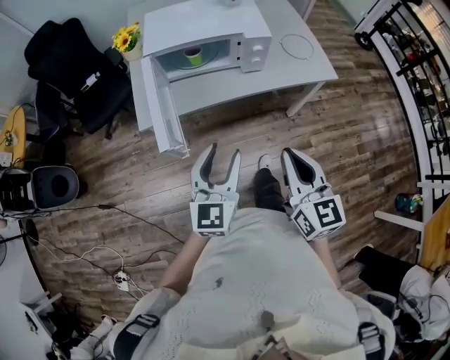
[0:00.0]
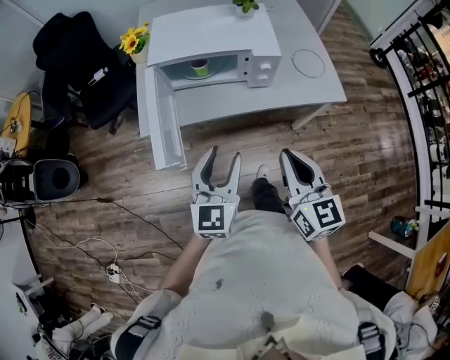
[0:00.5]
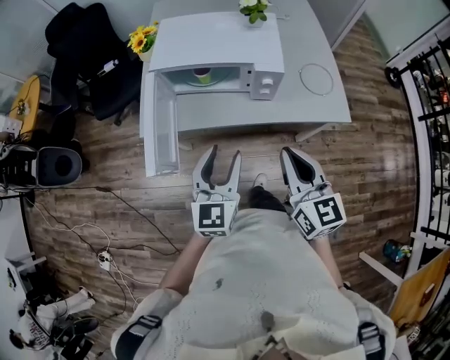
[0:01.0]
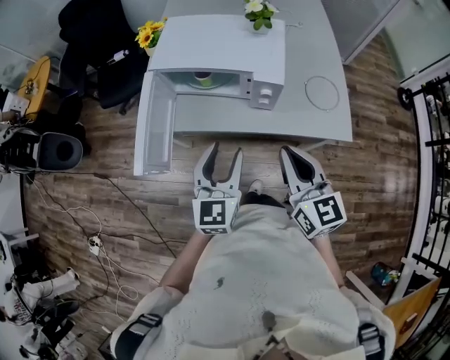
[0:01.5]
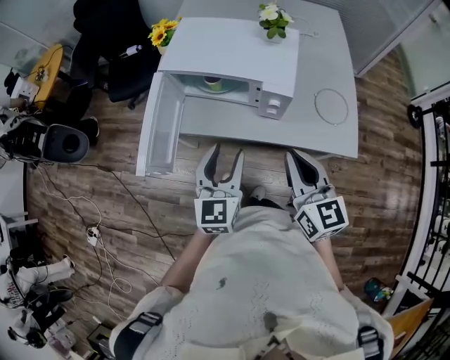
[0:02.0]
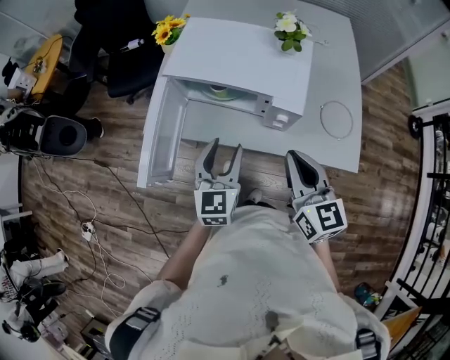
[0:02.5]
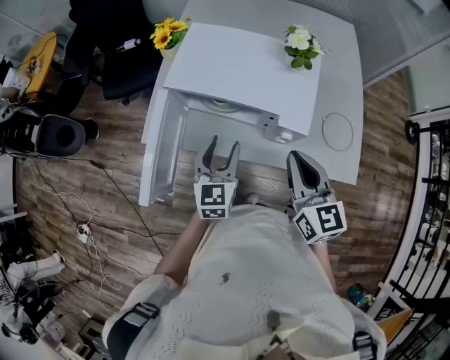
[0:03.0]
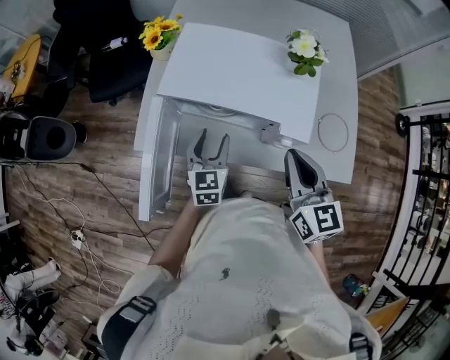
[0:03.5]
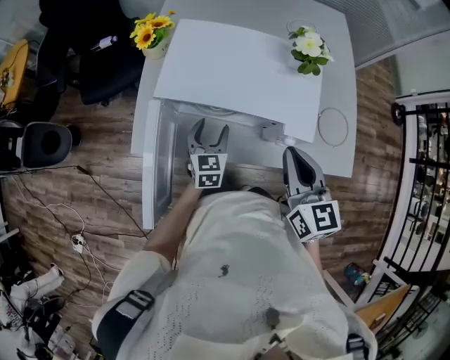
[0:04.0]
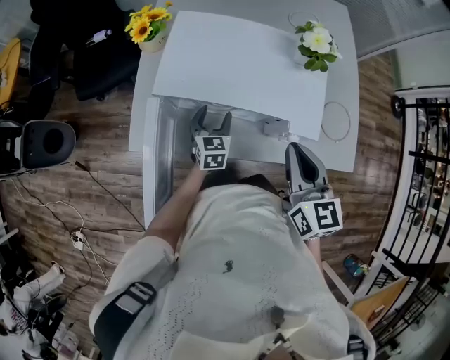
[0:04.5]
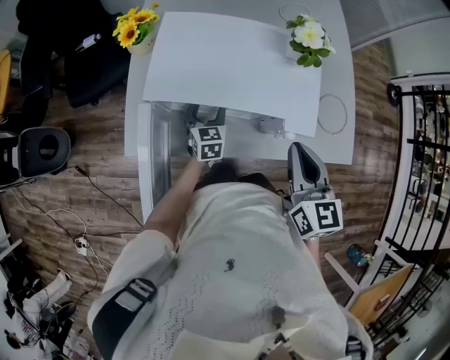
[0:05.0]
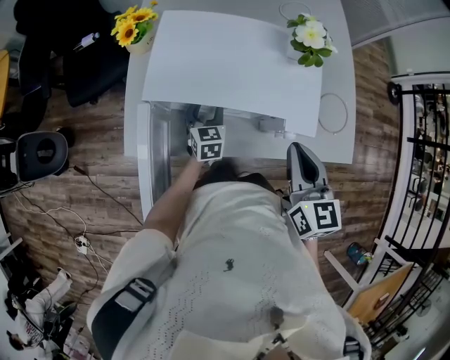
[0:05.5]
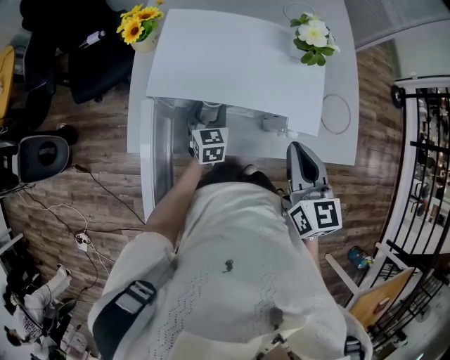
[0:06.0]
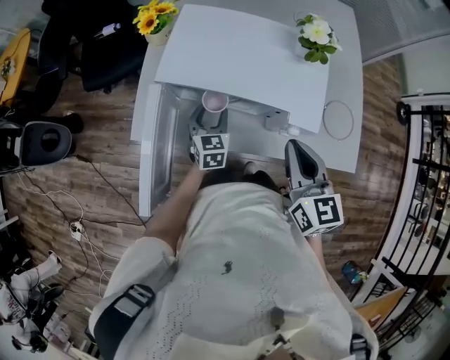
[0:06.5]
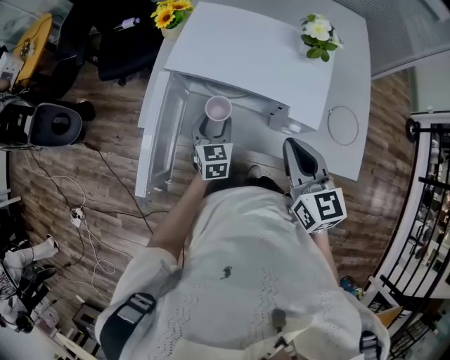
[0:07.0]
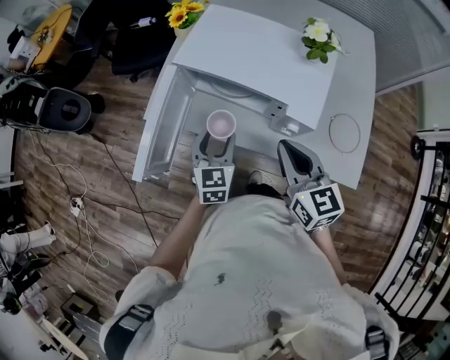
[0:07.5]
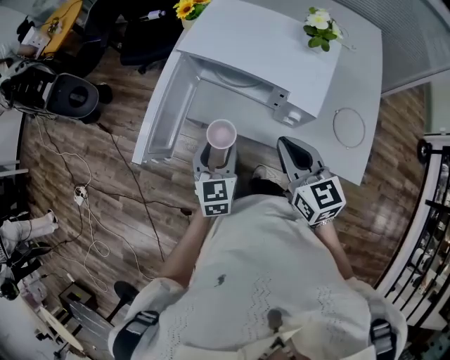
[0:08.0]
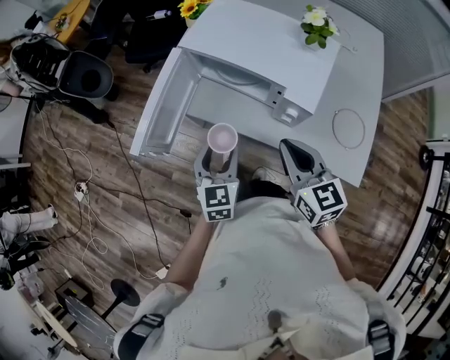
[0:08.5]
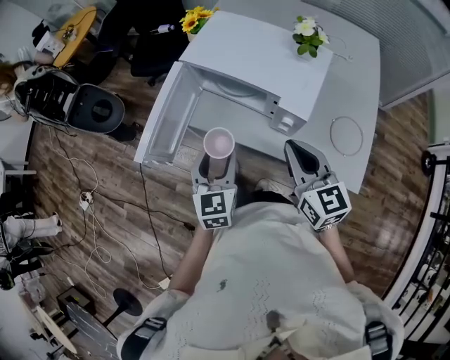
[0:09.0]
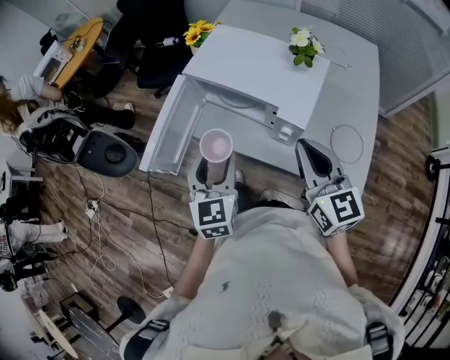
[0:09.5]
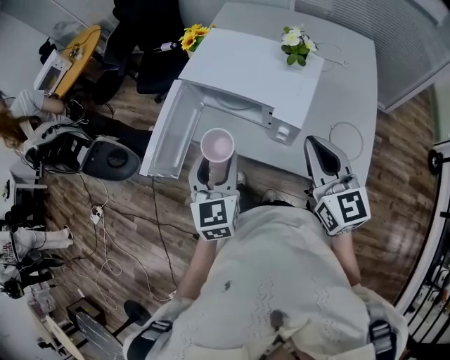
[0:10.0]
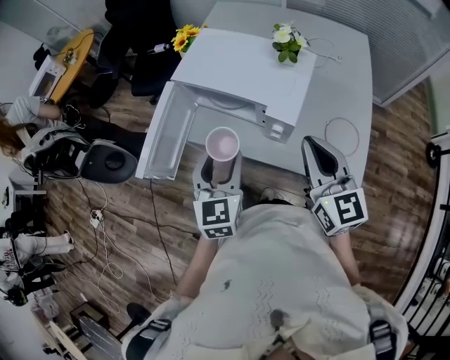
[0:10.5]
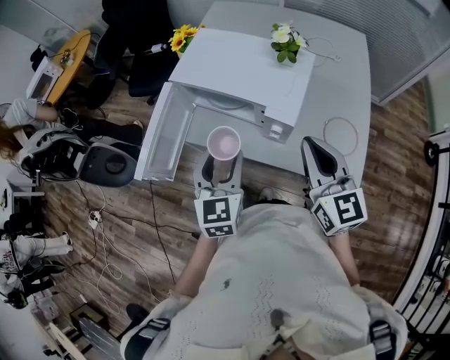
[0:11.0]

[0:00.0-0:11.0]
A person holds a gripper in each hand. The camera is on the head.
0:00.0 to 0:02.0: The two grippers go approximately 30 cm forward and to the right. The left gripper swivels about 30 degrees. Meanwhile the right gripper swivels about 20 degrees.
0:02.0 to 0:03.5: The left gripper heads forward and downward, covering roughly 25 cm. The right gripper shifts about 20 cm forward.
0:03.5 to 0:05.5: The left gripper heads forward and downward, covering approximately 15 cm.
0:05.5 to 0:07.5: The right gripper moves backward, approximately 5 cm, and changes its angle by some 30 degrees; the left gripper is displaced backward and upward by about 25 cm.
0:07.5 to 0:09.0: The right gripper shifts about 5 cm backward. Meanwhile the left gripper goes roughly 15 cm backward and upward.
0:09.0 to 0:11.0: The right gripper heads to the right and upward, covering roughly 10 cm; the left gripper travels upward and to the right by some 10 cm.

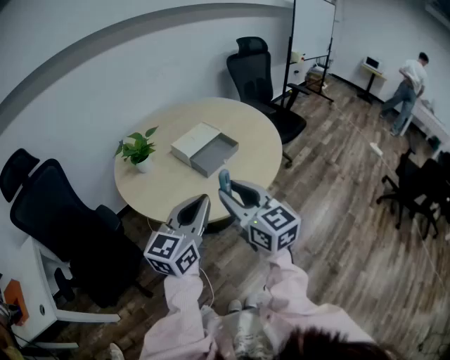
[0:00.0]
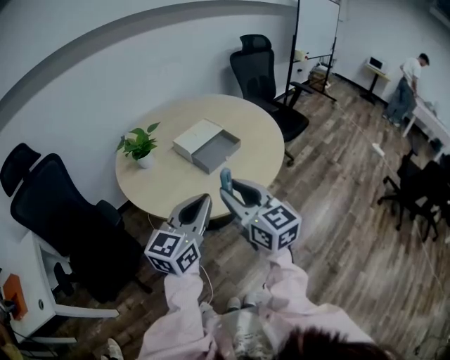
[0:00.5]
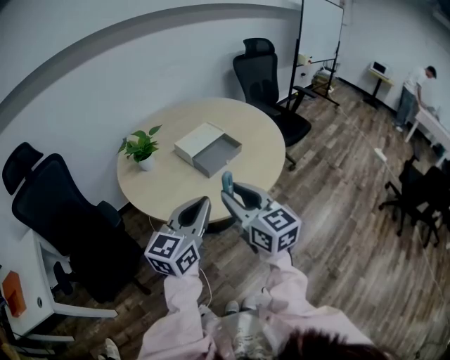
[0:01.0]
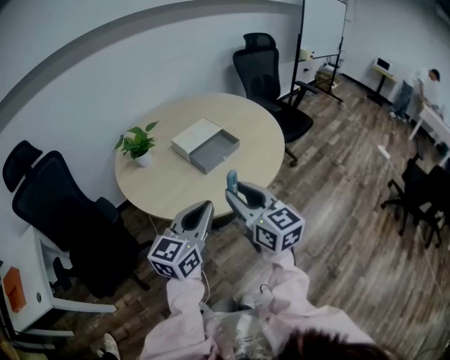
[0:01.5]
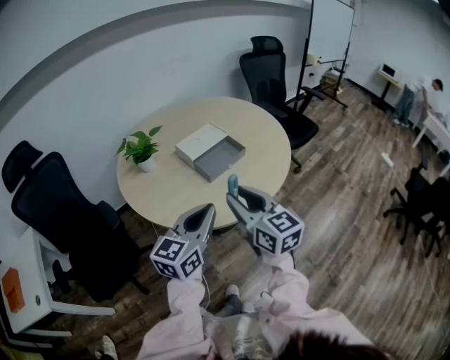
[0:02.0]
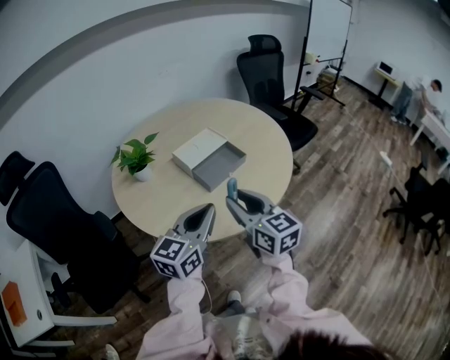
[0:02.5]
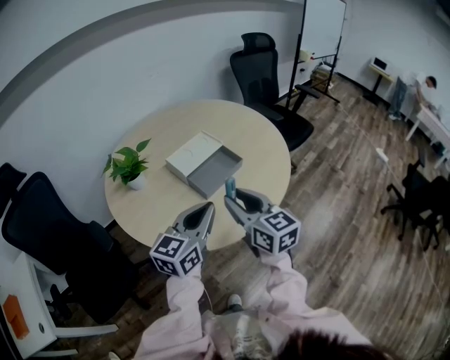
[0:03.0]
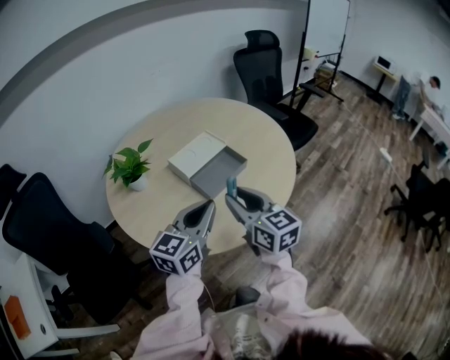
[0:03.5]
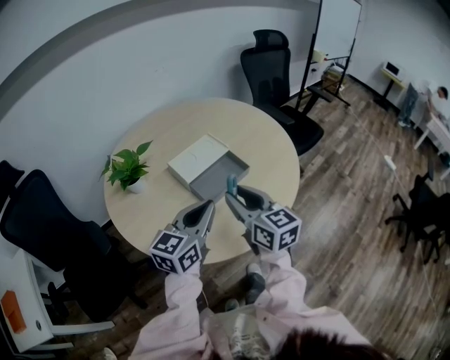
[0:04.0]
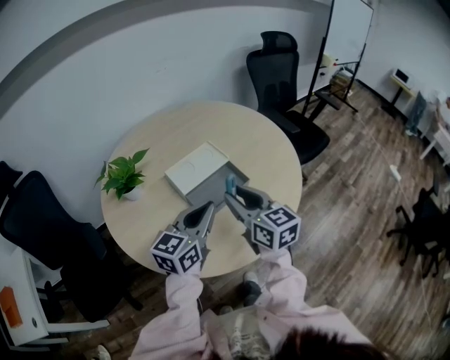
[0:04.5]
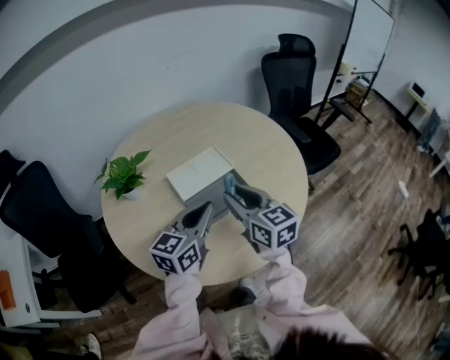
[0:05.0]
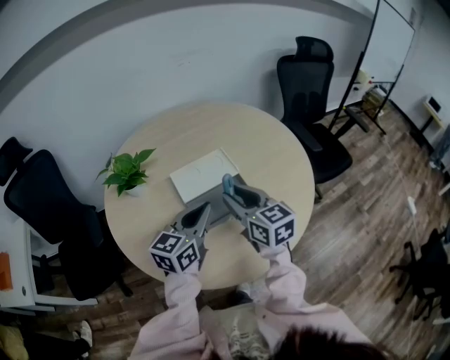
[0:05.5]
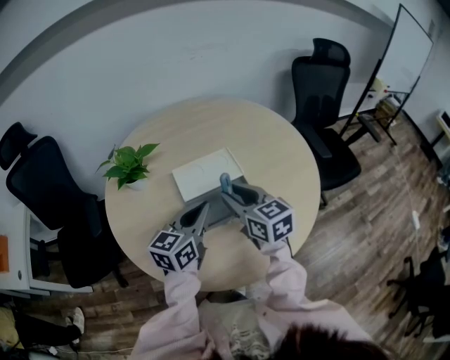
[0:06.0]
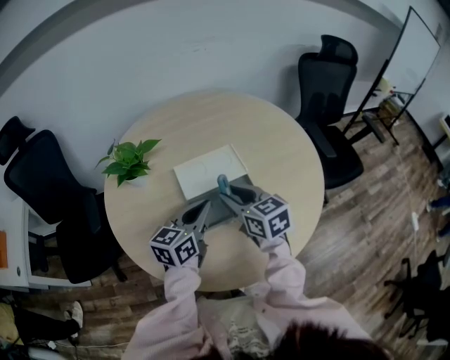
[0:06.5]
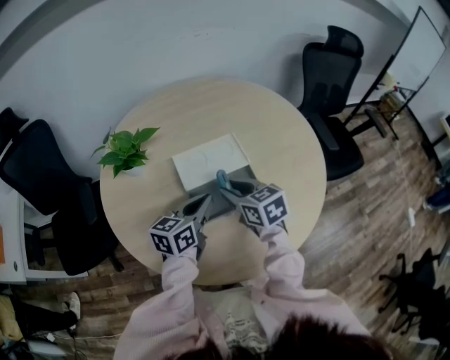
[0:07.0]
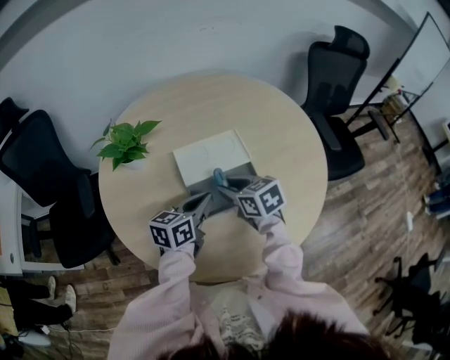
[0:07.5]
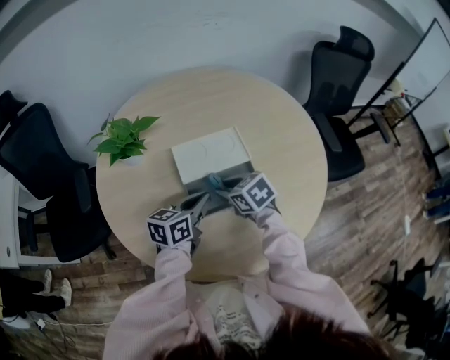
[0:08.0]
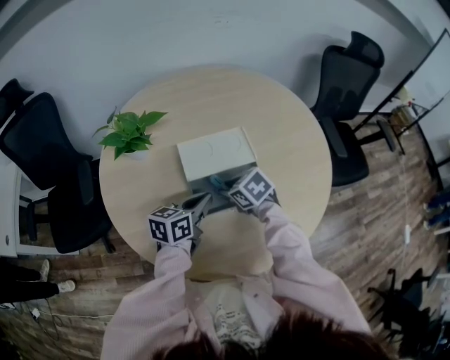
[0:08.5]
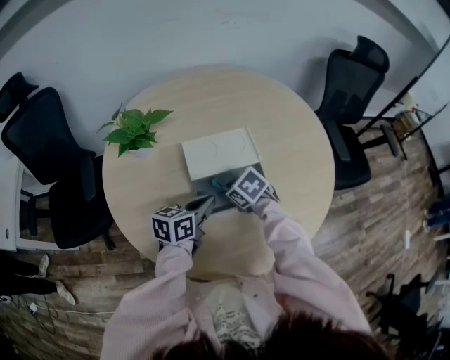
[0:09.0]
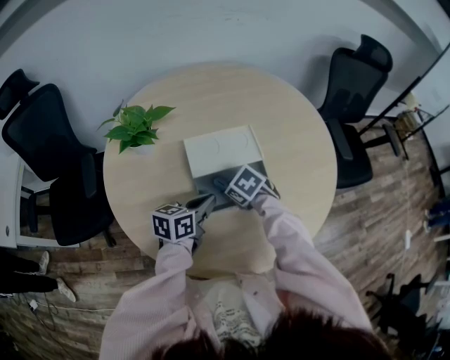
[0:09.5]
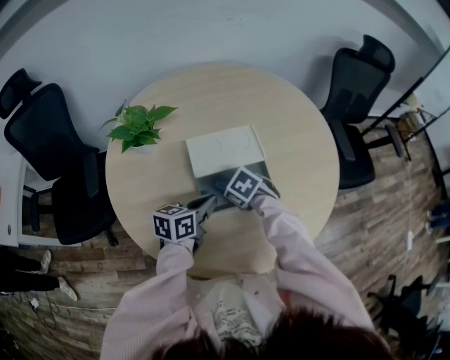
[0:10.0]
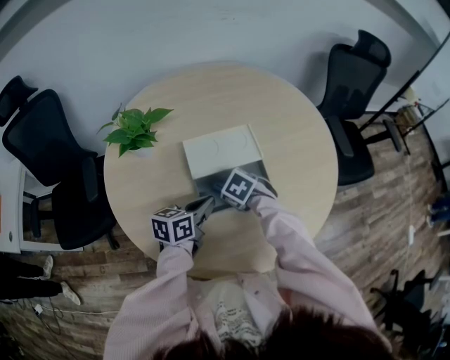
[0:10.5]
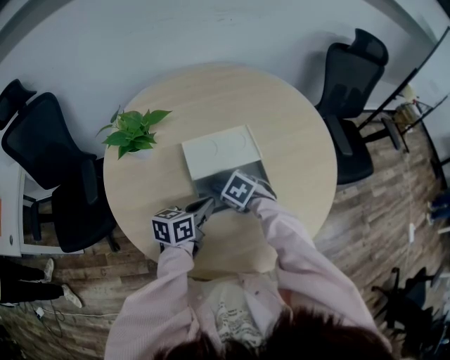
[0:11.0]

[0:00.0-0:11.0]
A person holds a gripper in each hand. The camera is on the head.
0:00.0 to 0:02.0: The right gripper shifts by about 5 cm. Meanwhile the left gripper ends up roughly 5 cm from where it was.
0:02.0 to 0:03.5: Both grippers move forward, some 15 cm.
0:03.5 to 0:05.5: Both grippers move forward, approximately 20 cm.
0:05.5 to 0:07.5: The left gripper moves downward, approximately 10 cm, and turns by some 20 degrees, while the right gripper moves downward and forward, roughly 15 cm, and changes its angle by some 30 degrees.
0:07.5 to 0:09.0: The right gripper moves downward, approximately 10 cm, and rotates about 30 degrees.
0:09.0 to 0:11.0: The grippers stay close to where they were, moving slightly.

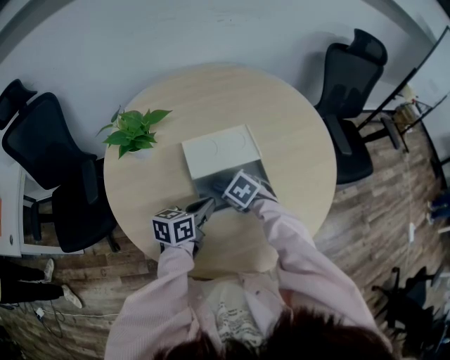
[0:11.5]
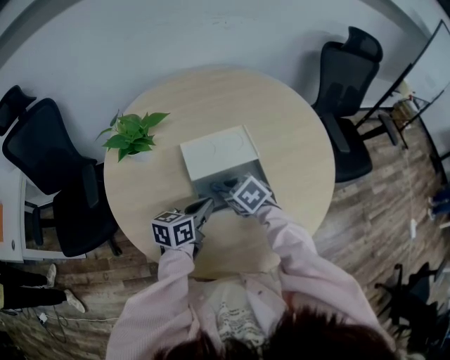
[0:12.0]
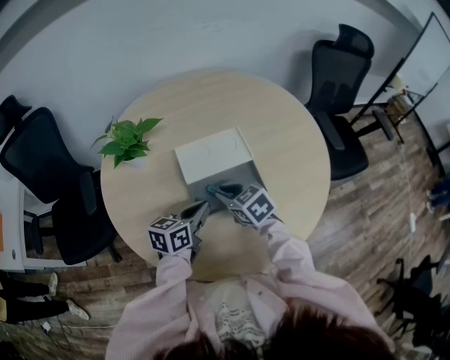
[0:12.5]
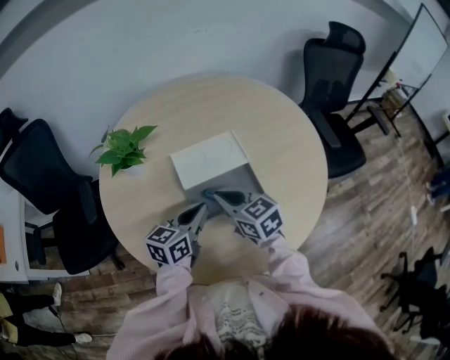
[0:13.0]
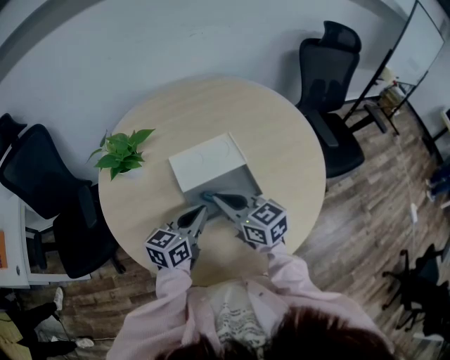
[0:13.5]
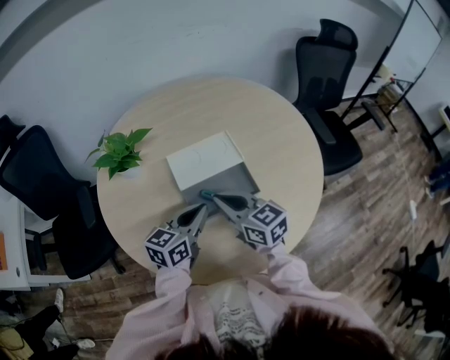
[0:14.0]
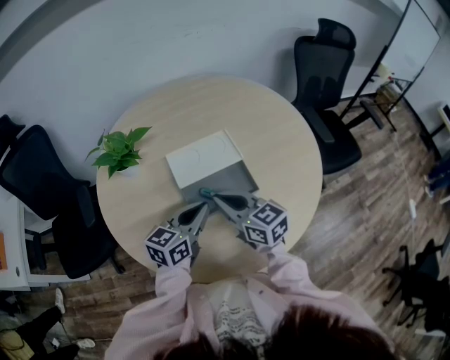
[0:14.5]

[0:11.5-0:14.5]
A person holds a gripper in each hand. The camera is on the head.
0:11.5 to 0:13.0: The right gripper moves upward, about 10 cm, points its fingers some 40 degrees further upward, and closes its fingers.
0:13.0 to 0:14.5: The grippers stay close to where they were, moving slightly.

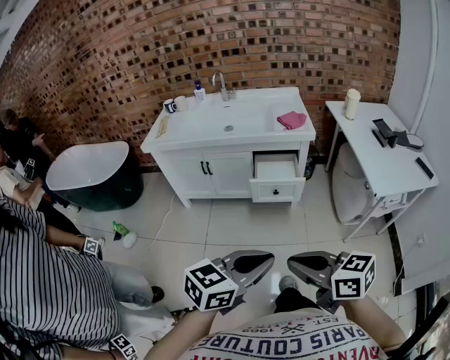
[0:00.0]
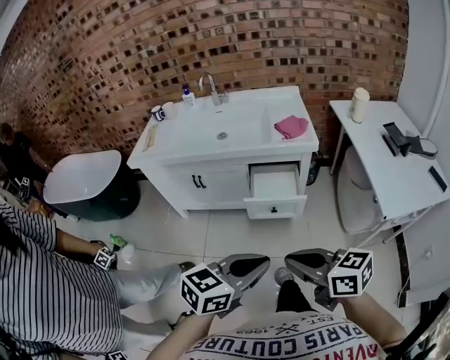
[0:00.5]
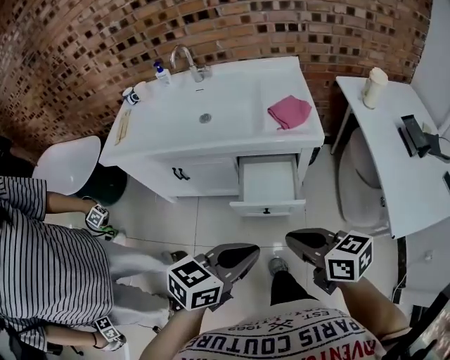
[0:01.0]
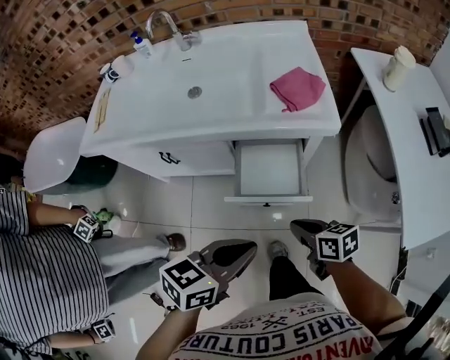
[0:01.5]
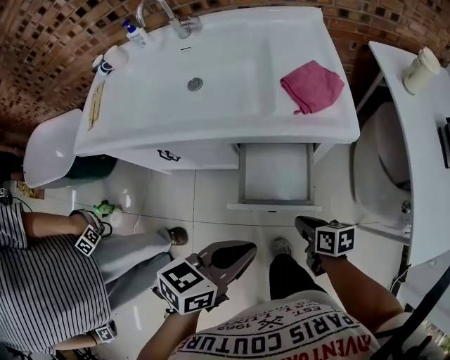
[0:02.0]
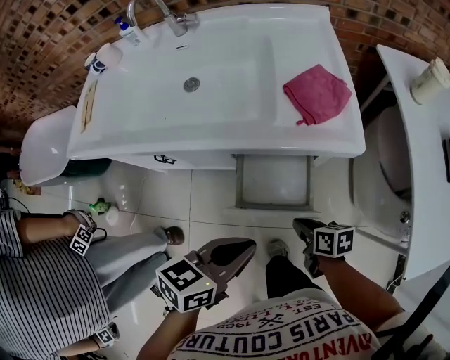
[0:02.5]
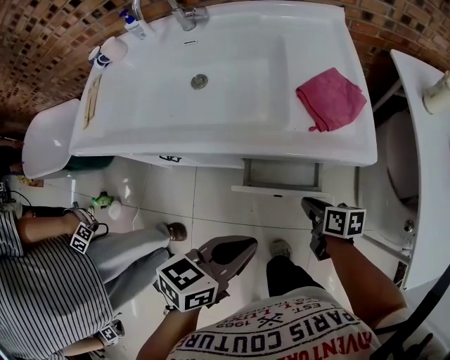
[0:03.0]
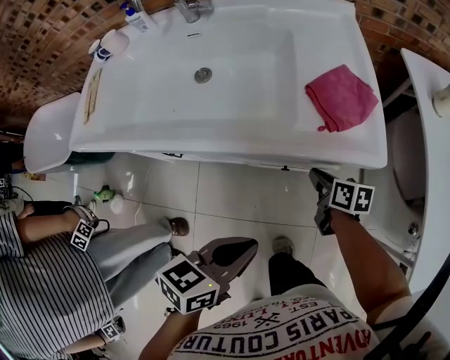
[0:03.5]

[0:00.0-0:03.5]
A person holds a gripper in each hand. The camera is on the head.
0:00.0 to 0:02.0: Both grippers are carried forward, about 50 cm. The right gripper travels downward by some 40 cm, and changes its angle by roughly 40 degrees. Meanwhile the left gripper is displaced downward by some 20 cm, and turns by about 20 degrees.
0:02.0 to 0:03.5: The left gripper goes some 5 cm forward. Meanwhile the right gripper shifts roughly 20 cm forward.
